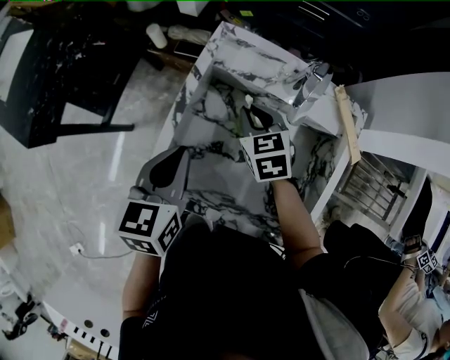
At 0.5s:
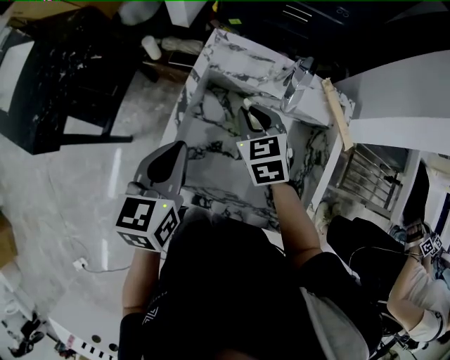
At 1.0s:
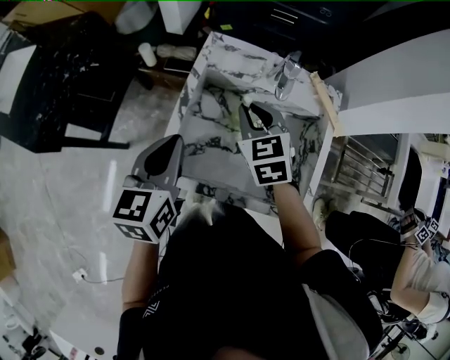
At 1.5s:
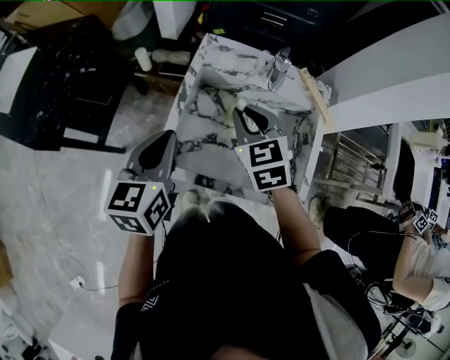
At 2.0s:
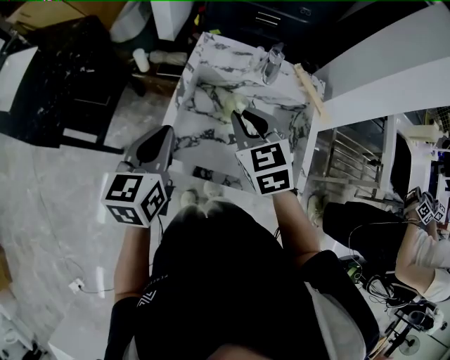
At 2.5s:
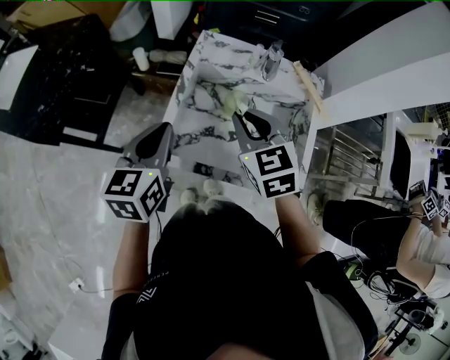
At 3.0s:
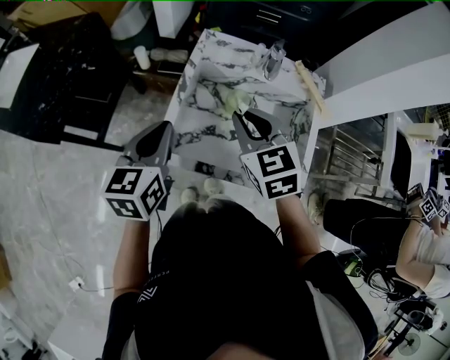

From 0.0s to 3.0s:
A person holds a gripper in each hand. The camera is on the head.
From 0.0s to 1.5s: The right gripper goes about 15 cm upward and backward, while the left gripper moves upward, about 5 cm.
From 1.5s to 3.0s: The right gripper travels backward by about 5 cm.

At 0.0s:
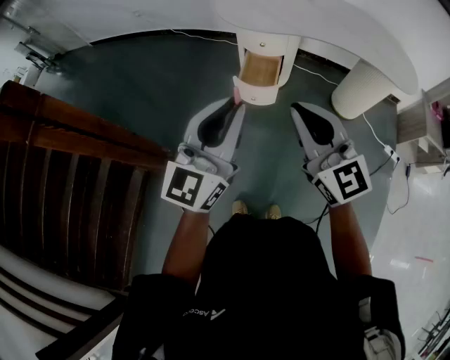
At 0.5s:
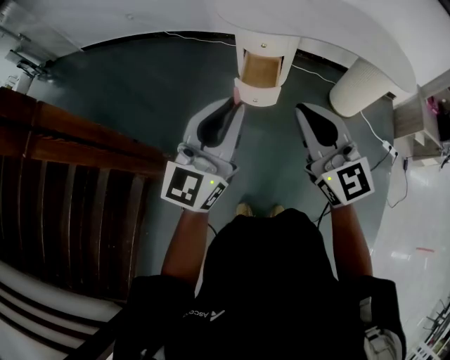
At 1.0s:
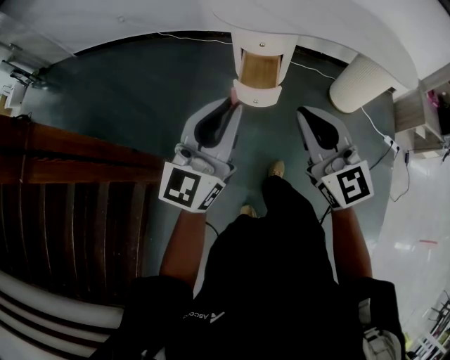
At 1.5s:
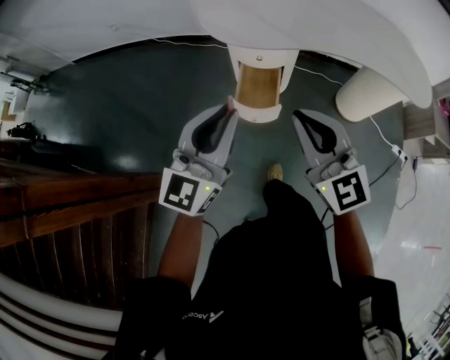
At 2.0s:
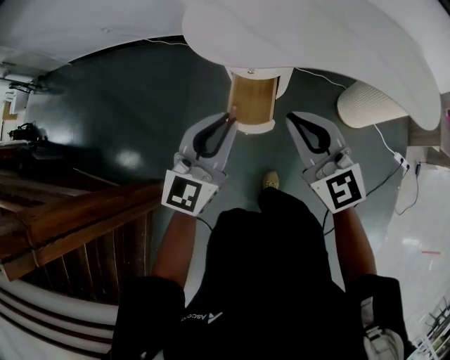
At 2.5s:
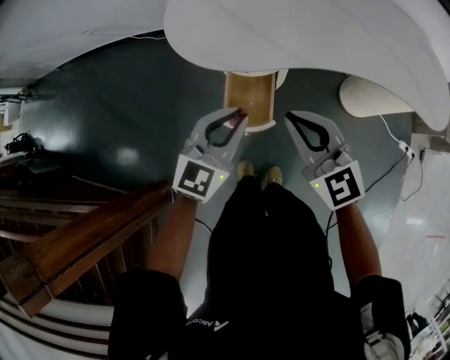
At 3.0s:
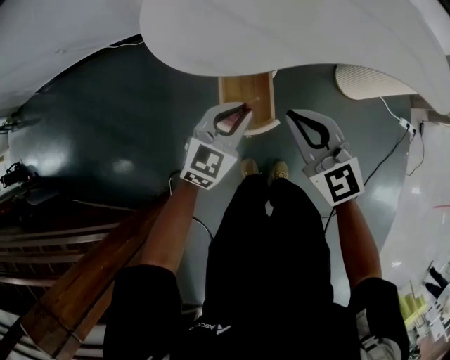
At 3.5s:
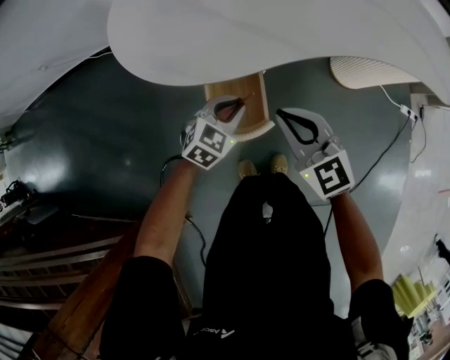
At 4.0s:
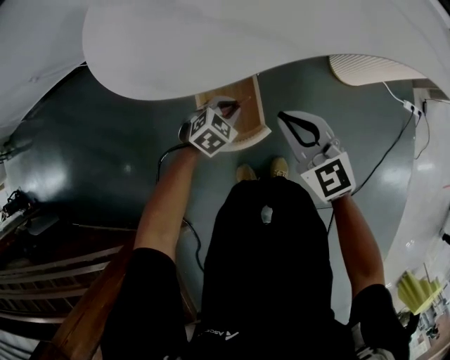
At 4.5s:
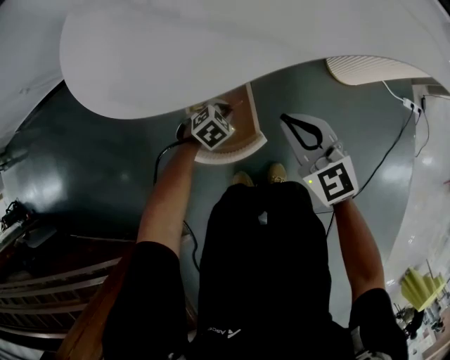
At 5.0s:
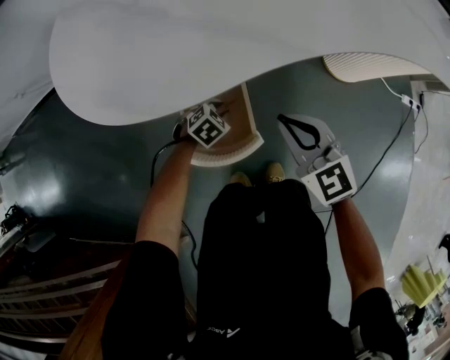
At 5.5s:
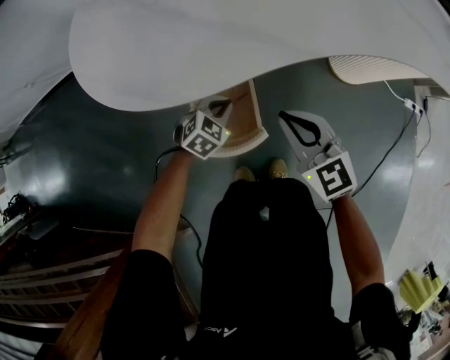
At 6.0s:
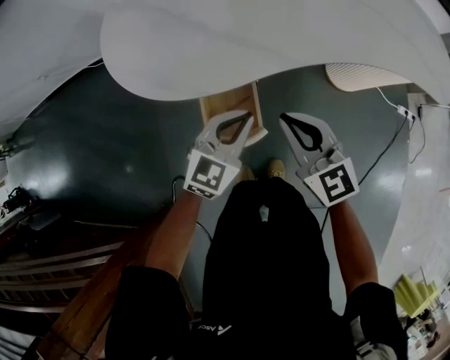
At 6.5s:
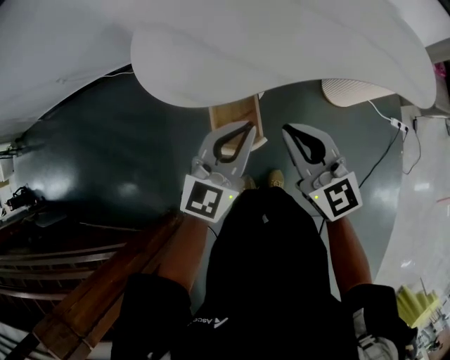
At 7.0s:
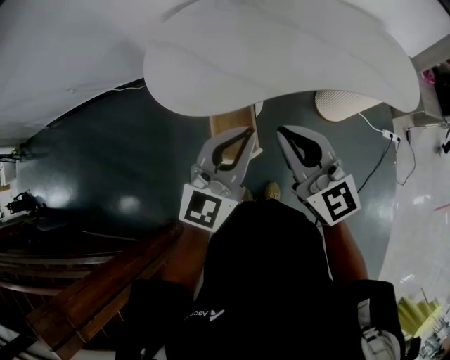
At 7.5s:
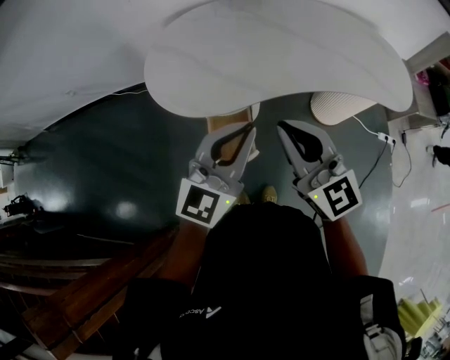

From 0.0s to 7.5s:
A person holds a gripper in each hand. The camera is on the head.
From 0.0s to 2.0s: Both grippers move forward, approximately 35 cm.
From 2.0s to 4.0s: The right gripper shifts some 35 cm downward and forward, and swivels about 20 degrees. The left gripper goes approximately 50 cm downward and forward, and tilts its fingers about 50 degrees downward.
From 4.0s to 5.5s: The left gripper reaches some 10 cm downward, then returns.
From 5.5s to 7.5s: Both grippers travel together upward, about 50 cm. The right gripper turns by about 20 degrees; the left gripper tips its fingers upward by roughly 60 degrees.

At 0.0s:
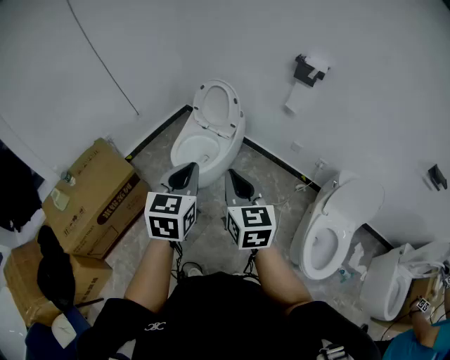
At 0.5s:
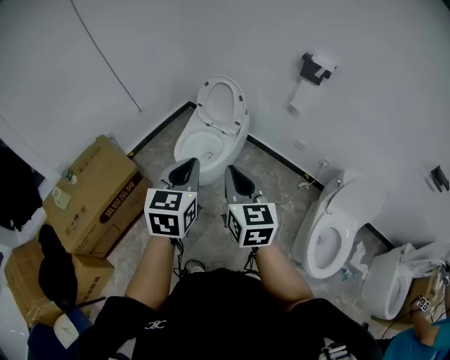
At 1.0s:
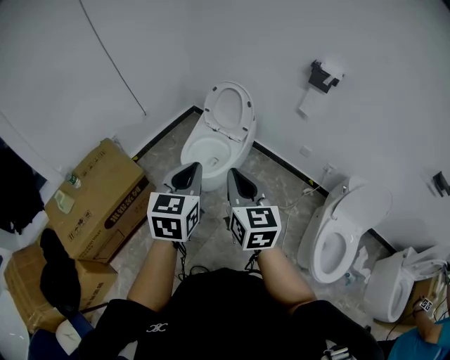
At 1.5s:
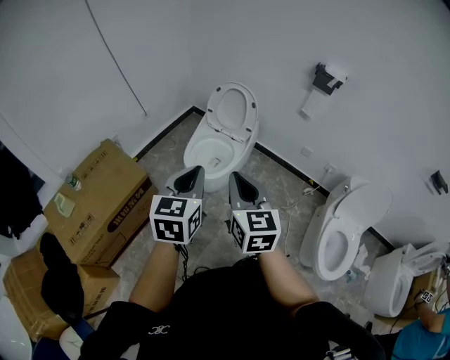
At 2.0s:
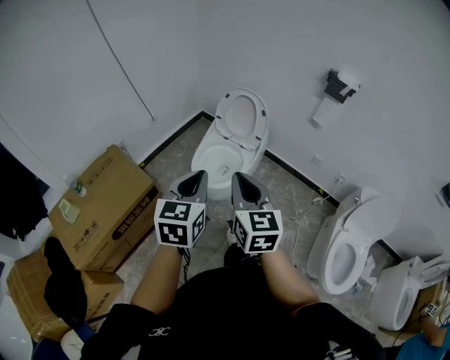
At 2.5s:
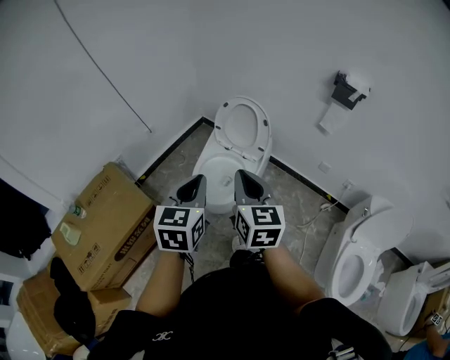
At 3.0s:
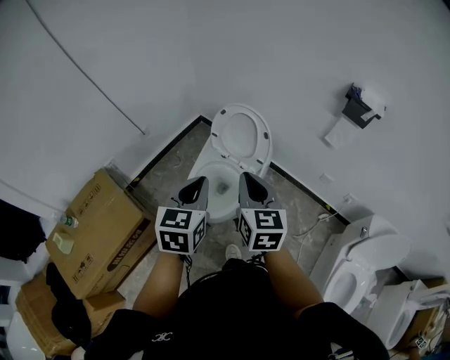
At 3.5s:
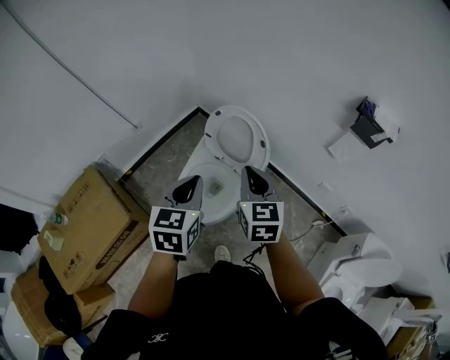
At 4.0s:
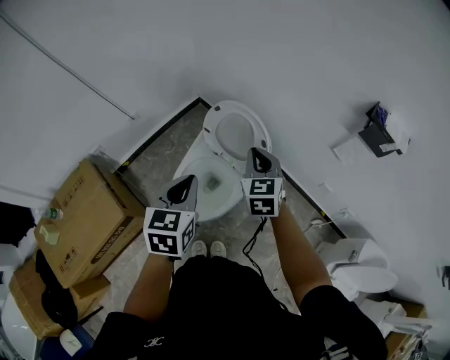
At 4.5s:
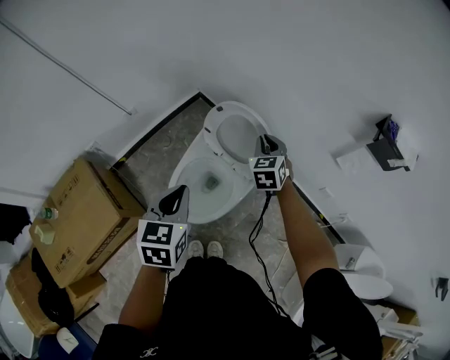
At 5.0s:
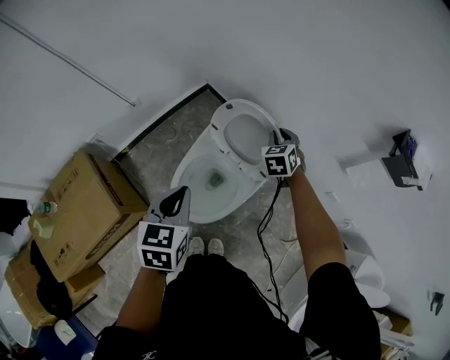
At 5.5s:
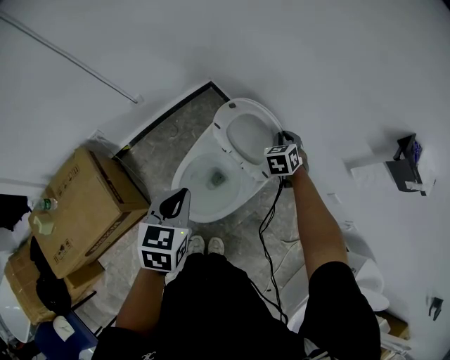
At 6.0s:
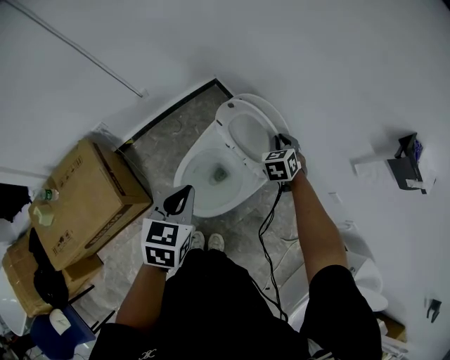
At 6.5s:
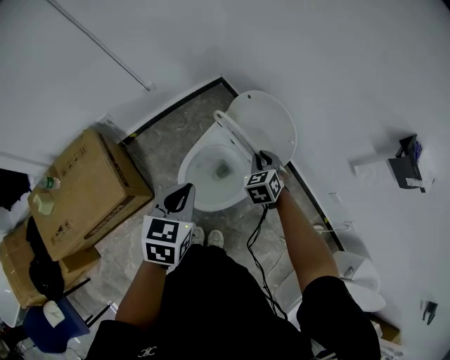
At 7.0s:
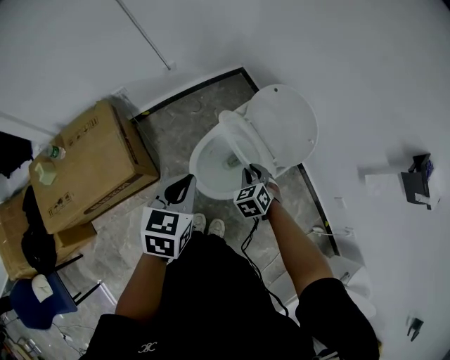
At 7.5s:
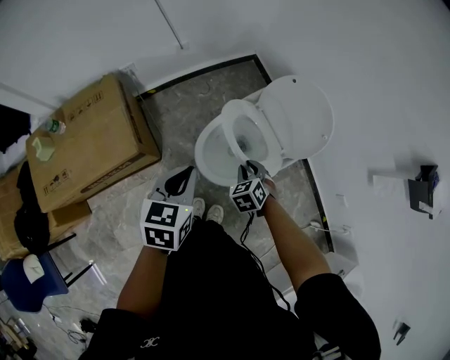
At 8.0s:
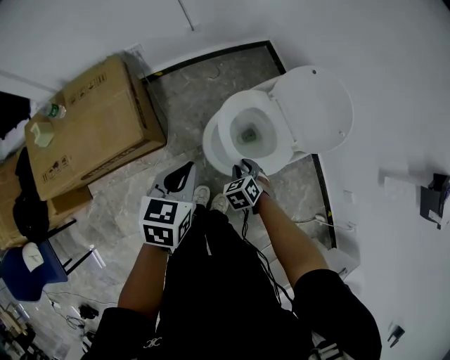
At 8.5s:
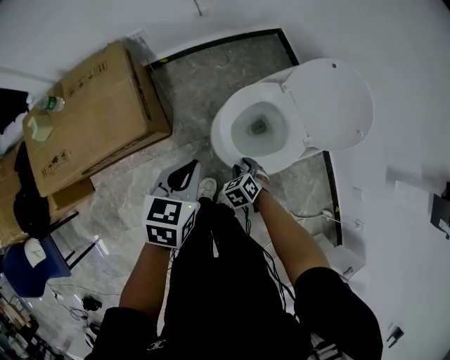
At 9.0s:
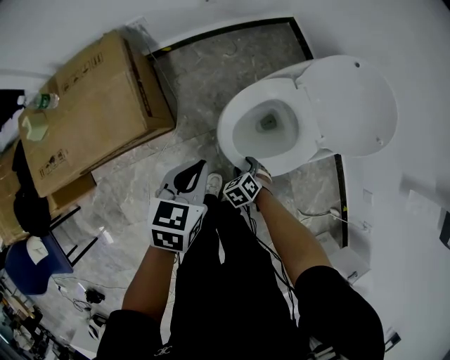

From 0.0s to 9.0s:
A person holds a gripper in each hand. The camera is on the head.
From 0.0s to 2.0s: The grippers both shift to the left and forward by roughly 15 cm.
From 2.0s to 4.5s: The left gripper is displaced forward by about 40 cm. The right gripper travels forward by roughly 60 cm, and rotates approximately 30 degrees.
From 4.5s to 7.0s: The left gripper moves to the left and backward, approximately 10 cm; the right gripper travels backward, downward and to the left by some 25 cm, and swivels about 30 degrees.
From 7.0s to 9.0s: The grippers both shift downward and to the left by about 25 cm. The right gripper turns by approximately 30 degrees, and opens.

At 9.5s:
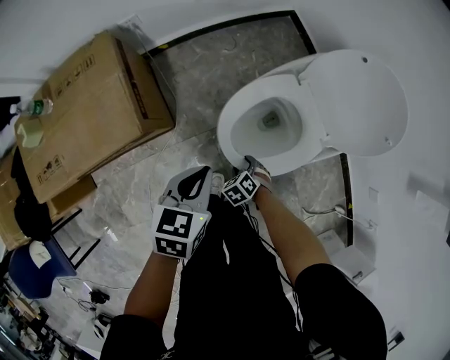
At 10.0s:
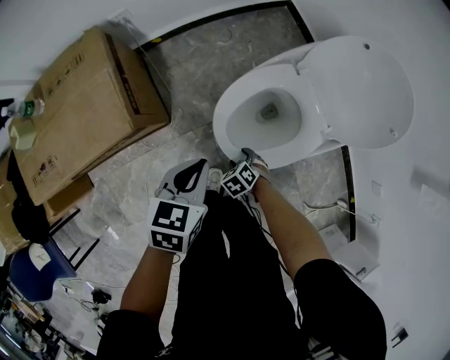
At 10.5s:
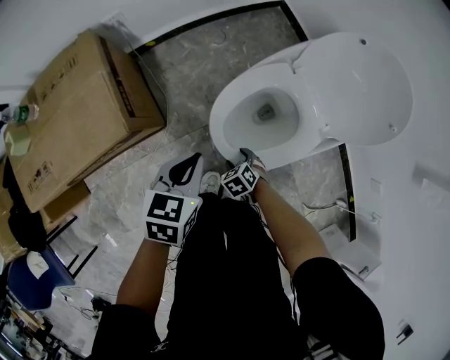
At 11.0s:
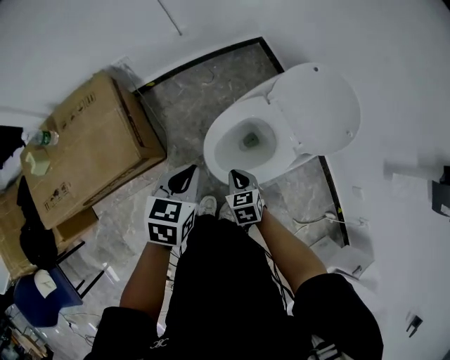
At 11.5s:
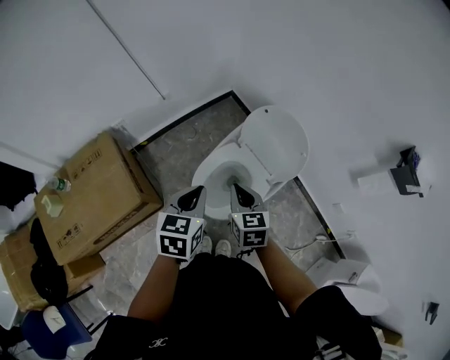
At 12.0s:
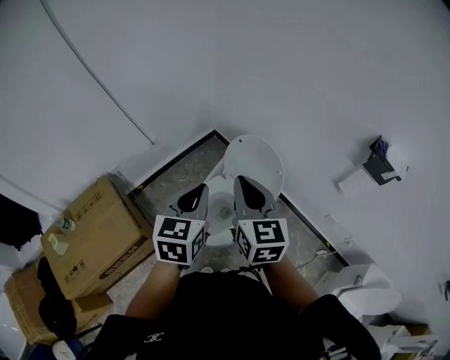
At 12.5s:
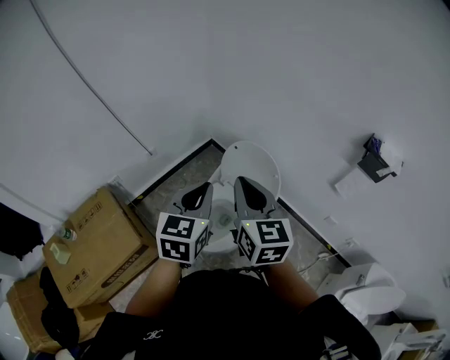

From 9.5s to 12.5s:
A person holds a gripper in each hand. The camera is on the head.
From 9.5s to 11.0s: The left gripper heads upward, covering some 5 cm, while the right gripper moves upward, approximately 20 cm, swivels approximately 30 degrees, and closes its fingers.
From 11.0s to 12.5s: The right gripper shifts approximately 50 cm upward, and angles its fingers upward, by approximately 40 degrees. Meanwhile the left gripper shifts some 35 cm upward and to the right, and changes its angle by some 30 degrees.

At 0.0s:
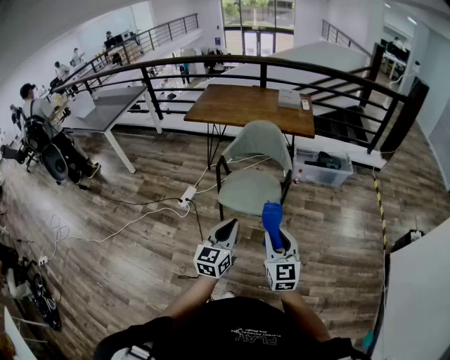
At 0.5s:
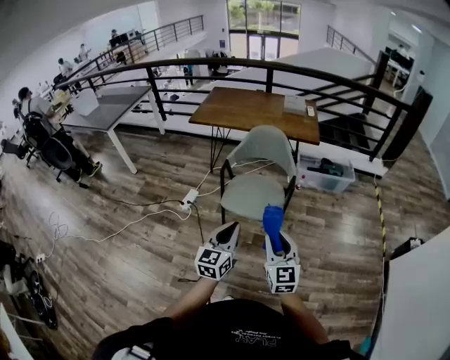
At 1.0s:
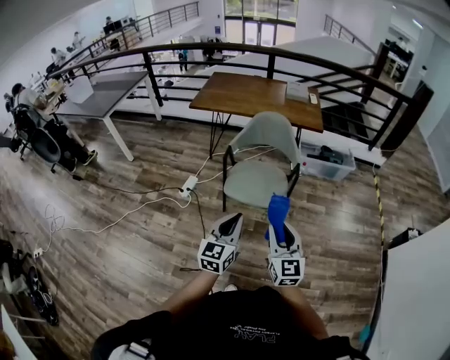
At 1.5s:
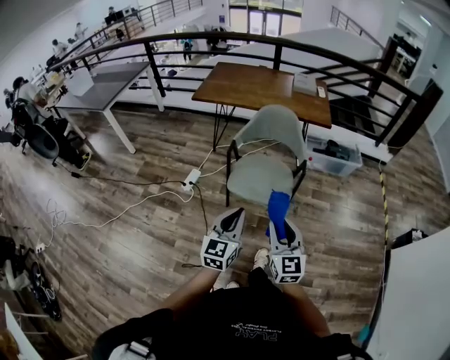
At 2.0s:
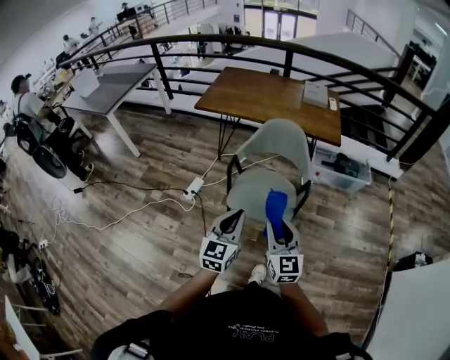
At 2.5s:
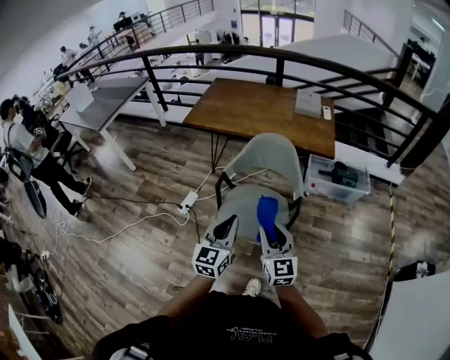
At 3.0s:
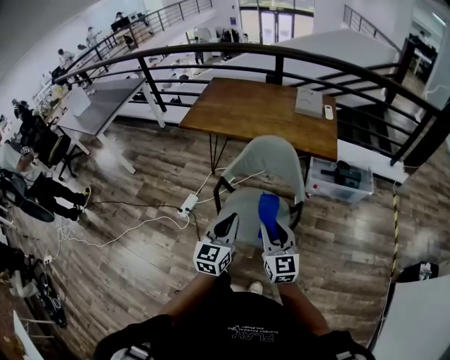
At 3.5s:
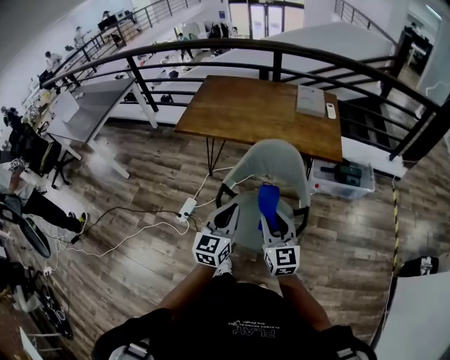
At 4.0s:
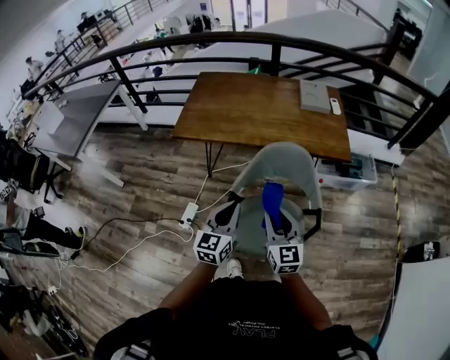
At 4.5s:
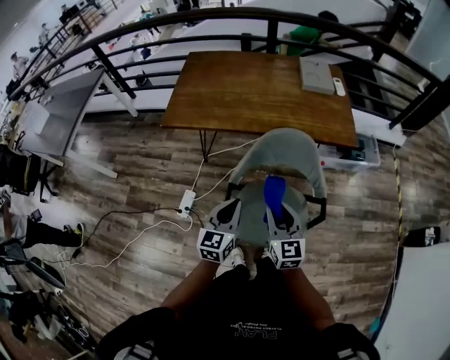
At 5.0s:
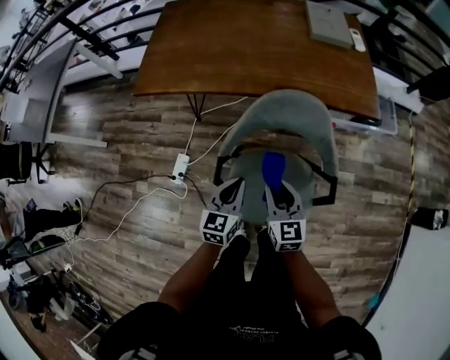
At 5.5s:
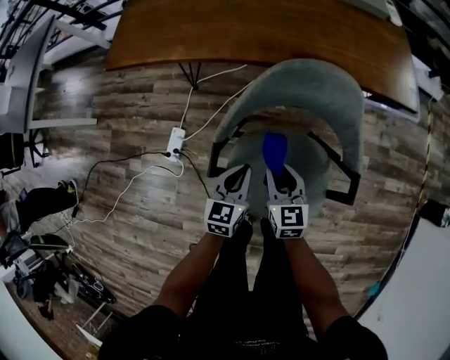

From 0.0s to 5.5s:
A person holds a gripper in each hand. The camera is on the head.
From 0.0s to 2.0s: The left gripper moves forward, roughly 15 cm. Meanwhile the right gripper goes roughly 20 cm forward and to the left.
From 2.0s to 3.5s: The two grippers go approximately 25 cm forward.
From 3.5s to 5.5s: Both grippers move downward and forward, roughly 35 cm. The right gripper swivels about 30 degrees; the left gripper changes its angle by approximately 30 degrees.
